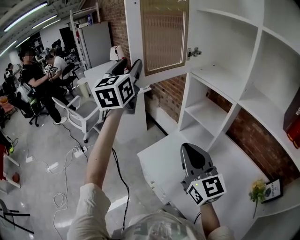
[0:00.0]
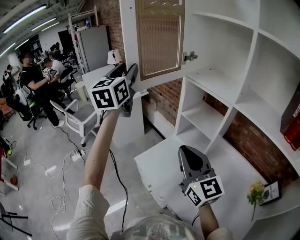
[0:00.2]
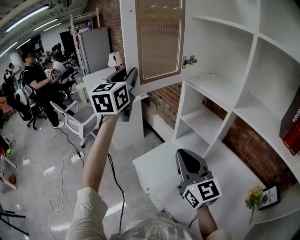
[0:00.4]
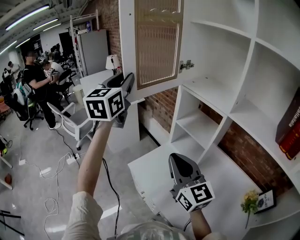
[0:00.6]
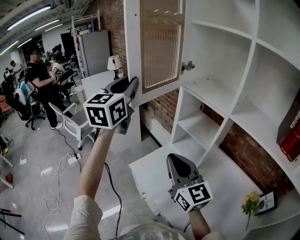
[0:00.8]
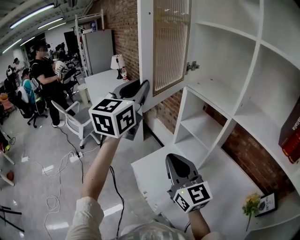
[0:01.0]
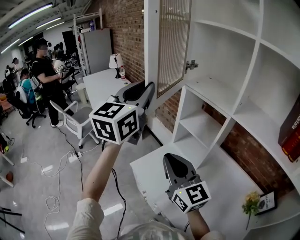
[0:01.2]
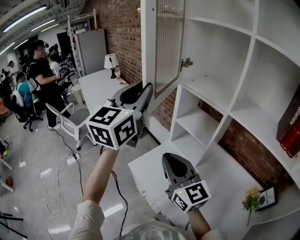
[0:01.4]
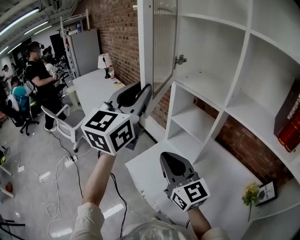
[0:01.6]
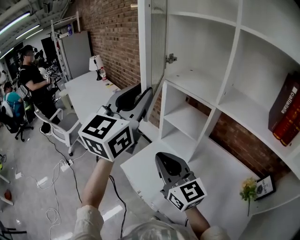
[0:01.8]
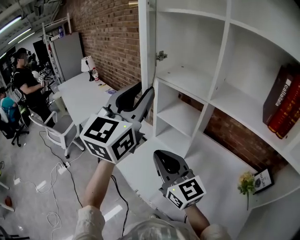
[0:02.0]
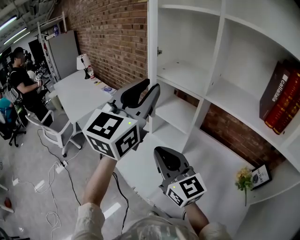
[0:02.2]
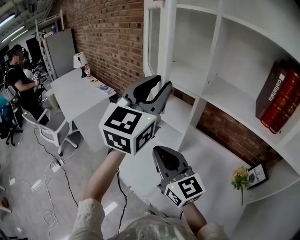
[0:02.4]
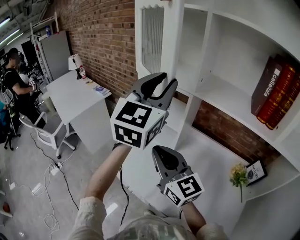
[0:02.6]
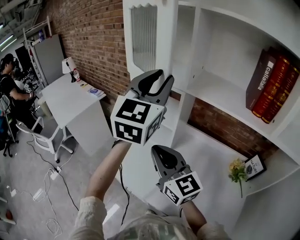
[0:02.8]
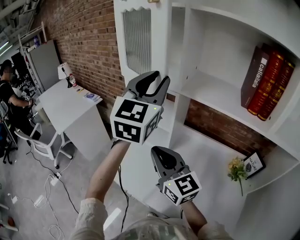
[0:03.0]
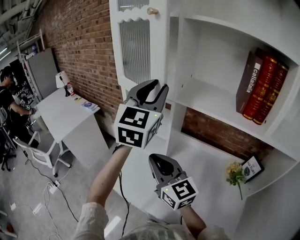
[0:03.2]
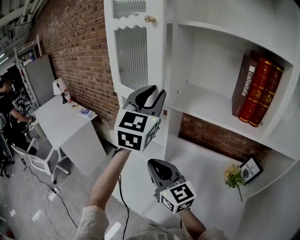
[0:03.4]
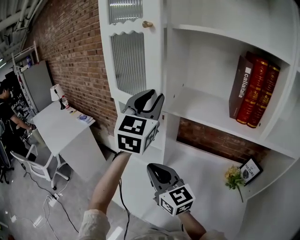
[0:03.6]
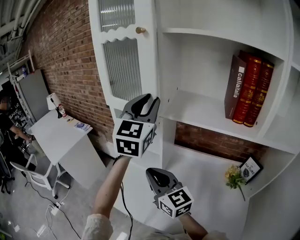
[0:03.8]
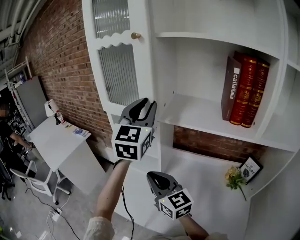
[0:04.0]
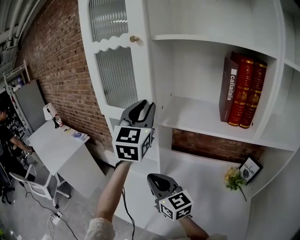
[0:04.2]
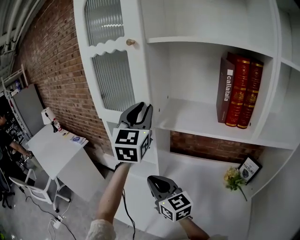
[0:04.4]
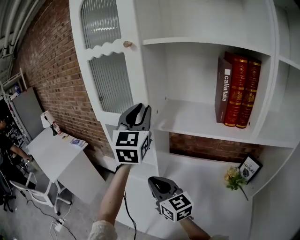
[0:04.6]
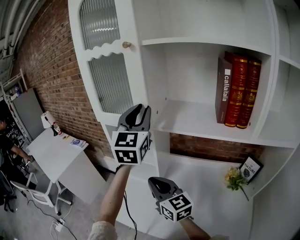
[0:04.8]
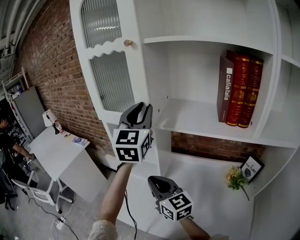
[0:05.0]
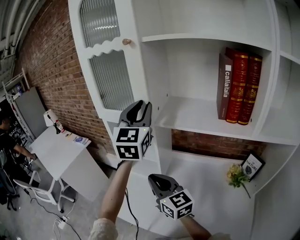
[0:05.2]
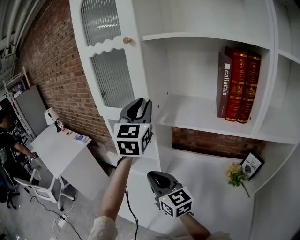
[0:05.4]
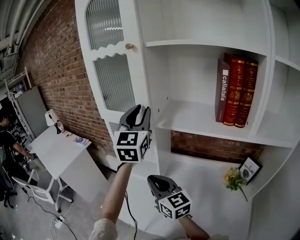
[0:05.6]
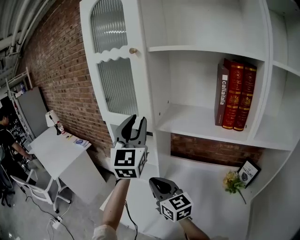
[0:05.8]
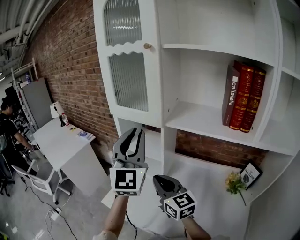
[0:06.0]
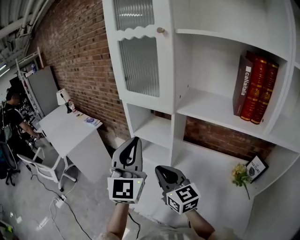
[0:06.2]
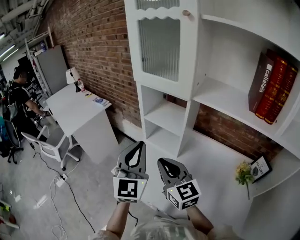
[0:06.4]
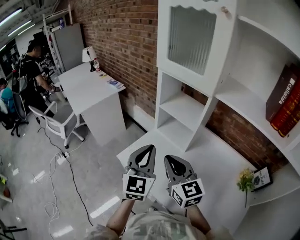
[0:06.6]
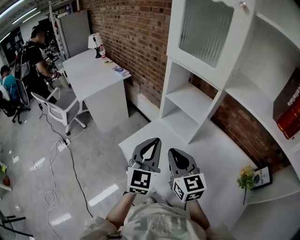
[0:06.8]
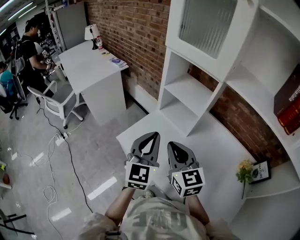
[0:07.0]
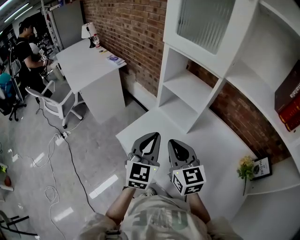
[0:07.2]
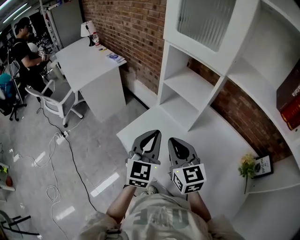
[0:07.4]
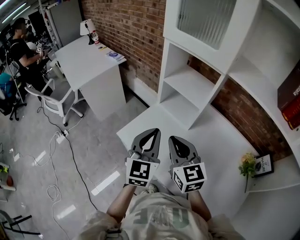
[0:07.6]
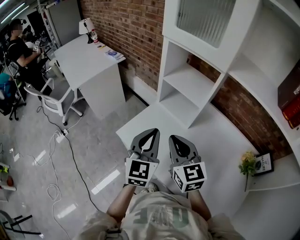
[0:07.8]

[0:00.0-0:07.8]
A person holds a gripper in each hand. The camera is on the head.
0:00.0 to 0:01.6: The left gripper is displaced to the right and backward by approximately 15 cm, and closes up.
0:01.6 to 0:03.2: The left gripper moves to the right, about 20 cm. The right gripper travels to the right by some 10 cm.
0:03.2 to 0:04.6: The right gripper shifts by roughly 5 cm; the left gripper heads forward, covering roughly 5 cm.
0:04.6 to 0:06.2: The right gripper ends up approximately 5 cm from where it was. The left gripper moves backward, to the left and downward, approximately 20 cm, and closes.
0:06.2 to 0:07.8: The left gripper moves downward, roughly 20 cm, and swivels roughly 30 degrees; the right gripper is displaced downward by roughly 10 cm.

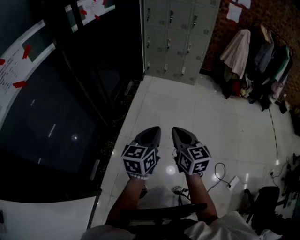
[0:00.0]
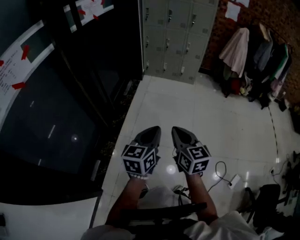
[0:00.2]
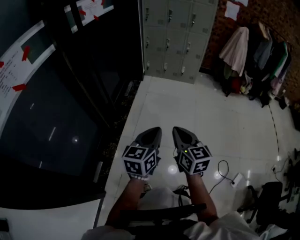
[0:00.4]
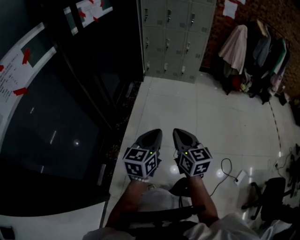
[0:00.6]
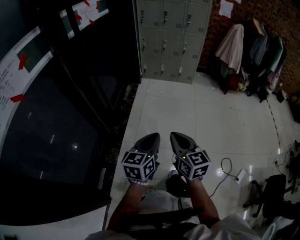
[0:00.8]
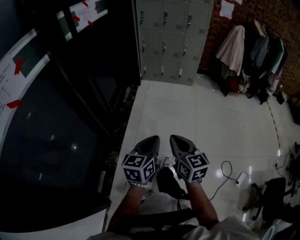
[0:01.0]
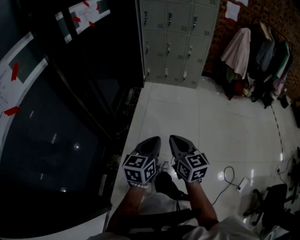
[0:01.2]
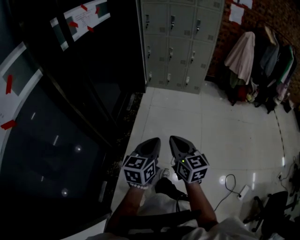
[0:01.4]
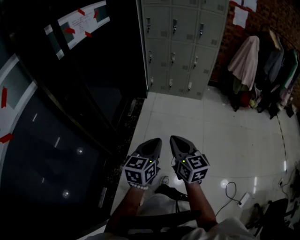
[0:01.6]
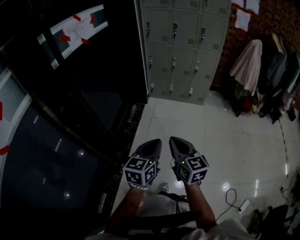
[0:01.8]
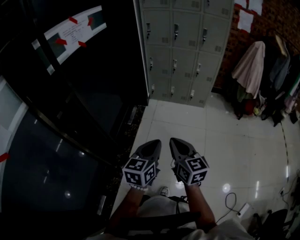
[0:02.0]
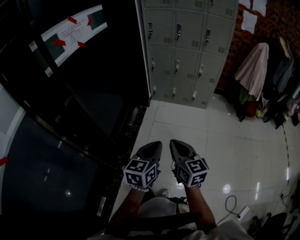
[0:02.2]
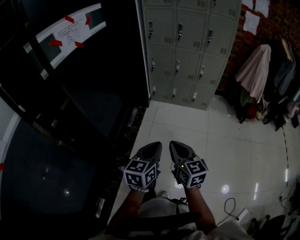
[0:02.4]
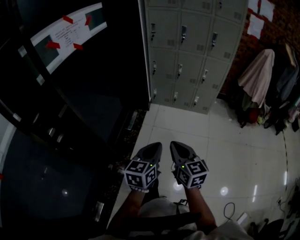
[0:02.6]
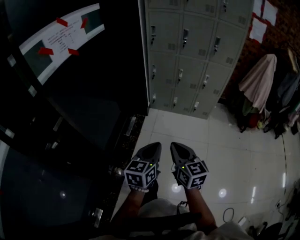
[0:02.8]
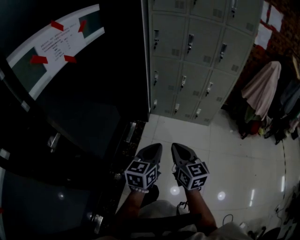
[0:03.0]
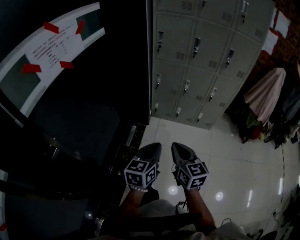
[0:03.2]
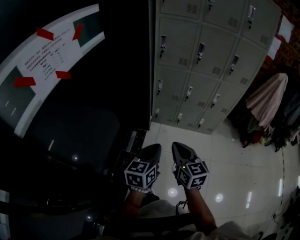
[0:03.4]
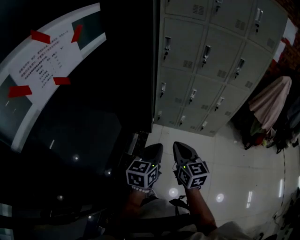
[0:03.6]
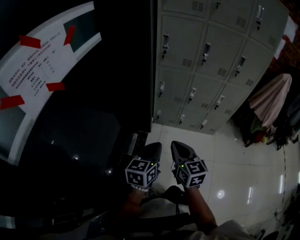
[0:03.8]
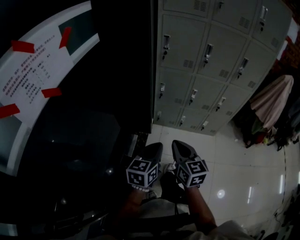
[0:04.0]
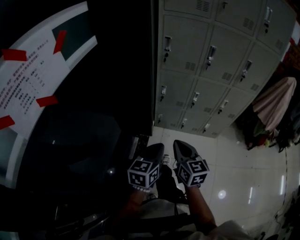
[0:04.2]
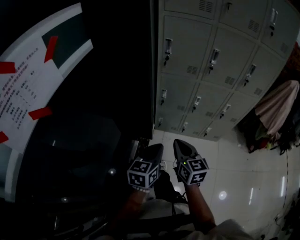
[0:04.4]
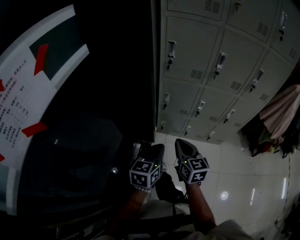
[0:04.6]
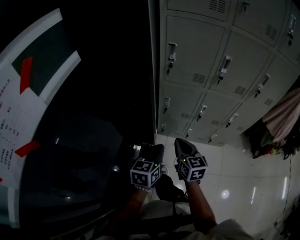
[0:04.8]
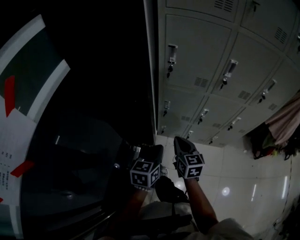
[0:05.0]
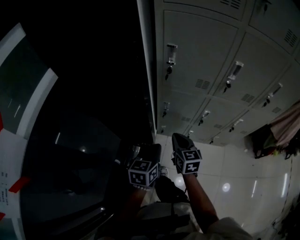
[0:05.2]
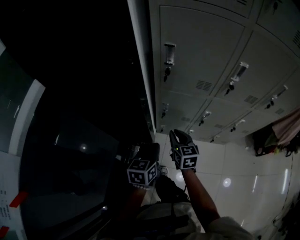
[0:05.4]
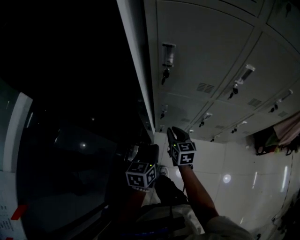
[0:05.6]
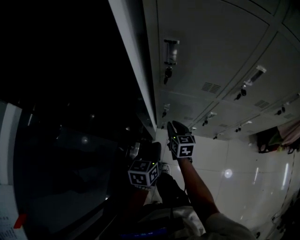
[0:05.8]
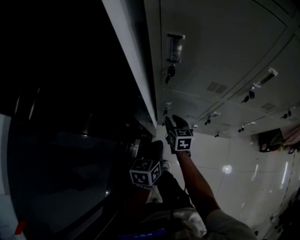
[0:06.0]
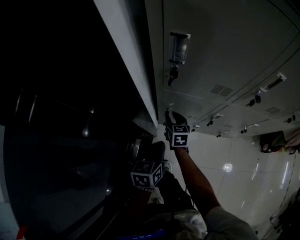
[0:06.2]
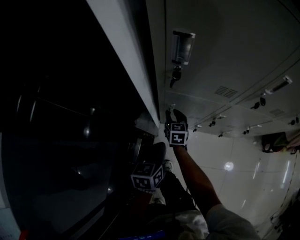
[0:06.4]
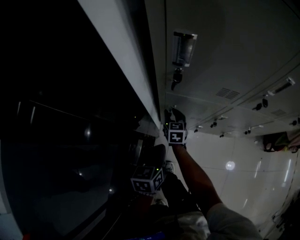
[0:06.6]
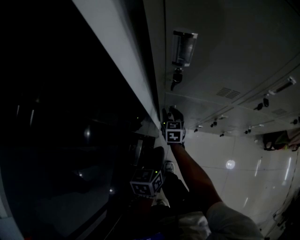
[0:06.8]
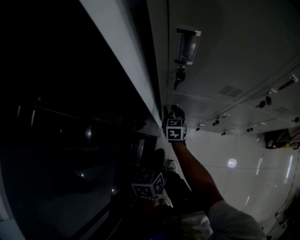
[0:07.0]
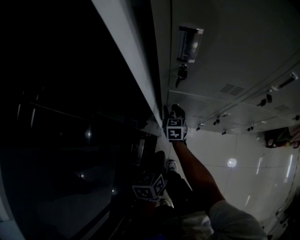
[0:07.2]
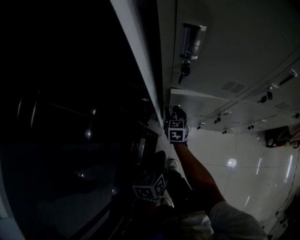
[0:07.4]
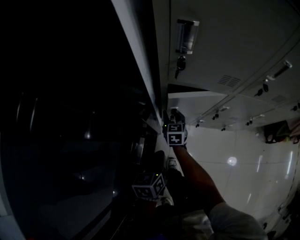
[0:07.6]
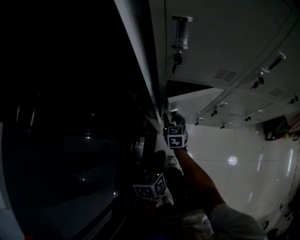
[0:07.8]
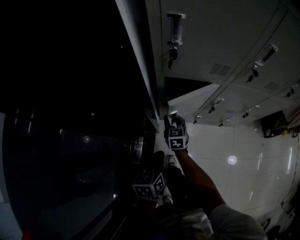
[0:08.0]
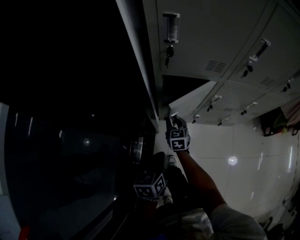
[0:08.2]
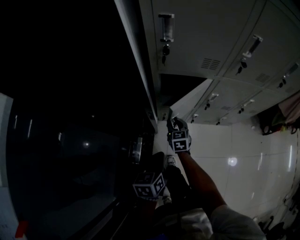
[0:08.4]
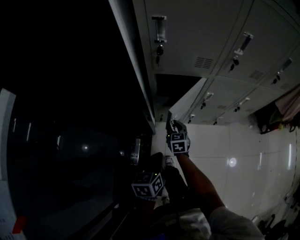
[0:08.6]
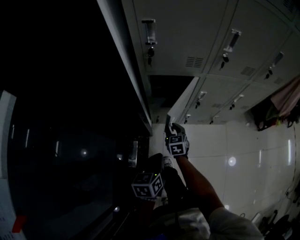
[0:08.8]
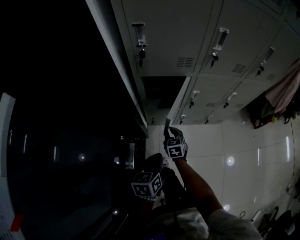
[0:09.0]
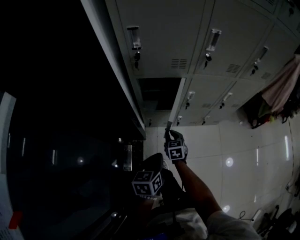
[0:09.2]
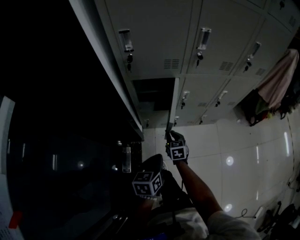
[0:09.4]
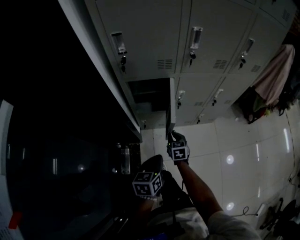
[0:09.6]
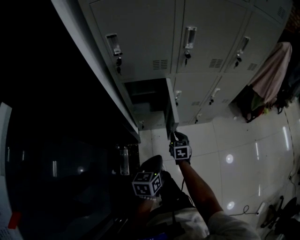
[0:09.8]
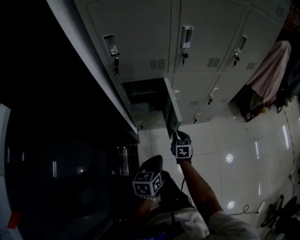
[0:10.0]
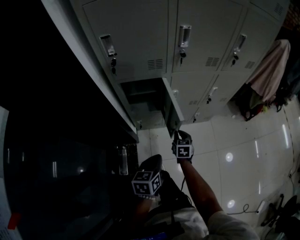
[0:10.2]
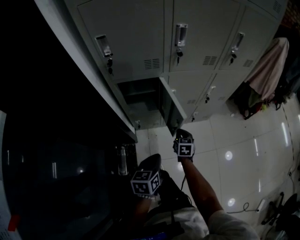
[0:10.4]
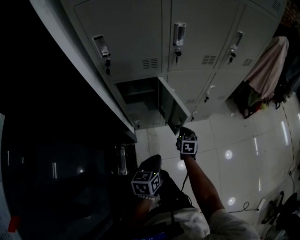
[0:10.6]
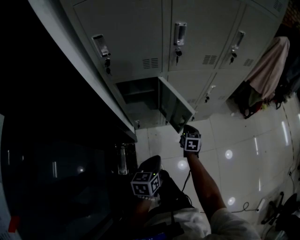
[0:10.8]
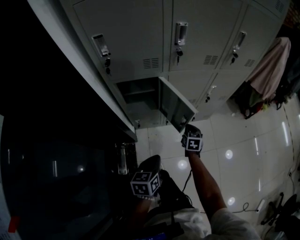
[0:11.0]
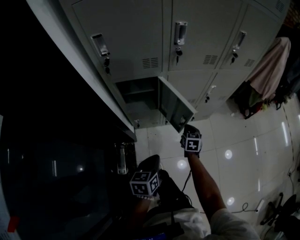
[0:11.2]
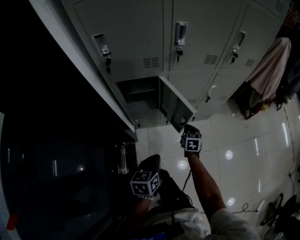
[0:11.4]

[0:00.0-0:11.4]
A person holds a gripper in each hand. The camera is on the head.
0:00.0 to 0:01.4: The grippers both shift forward and to the left by some 15 cm.
0:01.4 to 0:02.8: The grippers both shift forward by about 35 cm.
0:02.8 to 0:04.2: Both grippers travel together forward, roughly 35 cm.
0:04.2 to 0:05.6: The right gripper heads forward and downward, covering some 40 cm, and opens up. The left gripper is displaced forward by approximately 35 cm.
0:05.6 to 0:07.2: The left gripper moves downward, roughly 5 cm. Meanwhile the right gripper moves forward, downward and to the left, about 20 cm.
0:07.2 to 0:08.6: The right gripper travels backward and to the right by roughly 20 cm. The left gripper is displaced backward by some 10 cm.
0:08.6 to 0:10.0: The right gripper goes about 20 cm to the right. Meanwhile the left gripper shifts roughly 10 cm to the right.
0:10.0 to 0:11.4: The right gripper travels to the right by approximately 10 cm.

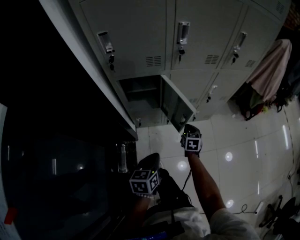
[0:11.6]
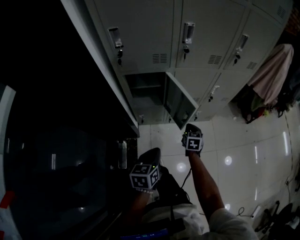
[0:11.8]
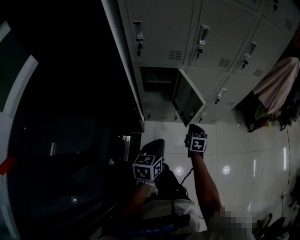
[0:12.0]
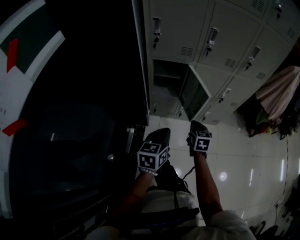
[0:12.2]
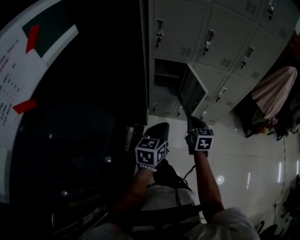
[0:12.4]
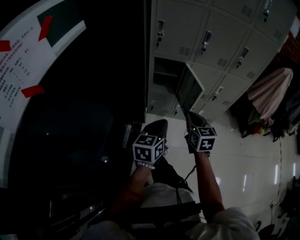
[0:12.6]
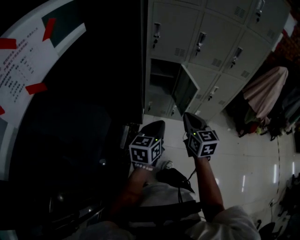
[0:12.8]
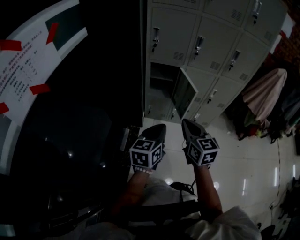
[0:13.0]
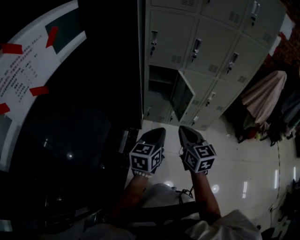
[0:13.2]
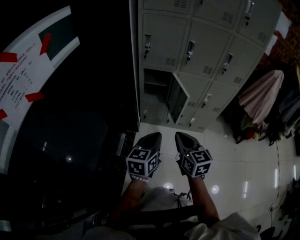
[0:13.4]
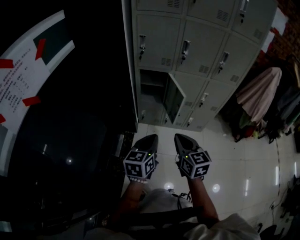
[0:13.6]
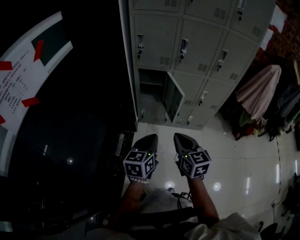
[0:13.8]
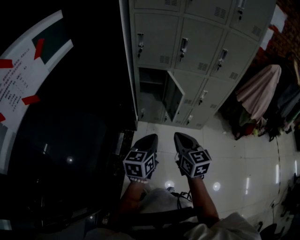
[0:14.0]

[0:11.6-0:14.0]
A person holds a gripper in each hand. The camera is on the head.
0:11.6 to 0:12.8: The right gripper goes roughly 40 cm upward and backward, and rotates some 40 degrees. The left gripper shifts approximately 25 cm upward and backward, and swivels some 20 degrees.
0:12.8 to 0:14.0: The left gripper goes about 5 cm to the right; the right gripper heads backward and to the right, covering some 10 cm.

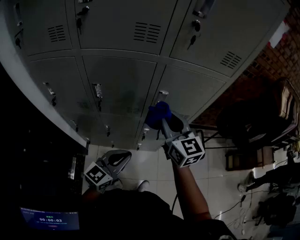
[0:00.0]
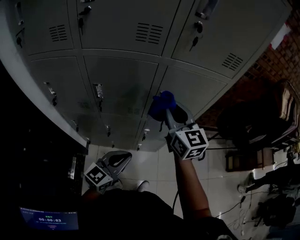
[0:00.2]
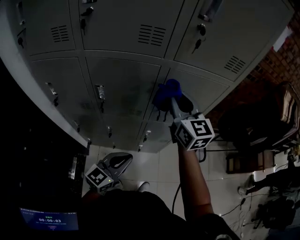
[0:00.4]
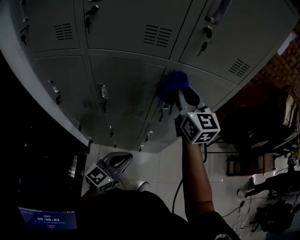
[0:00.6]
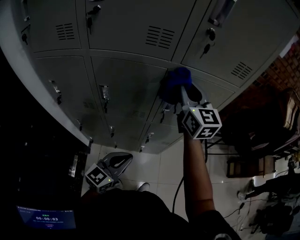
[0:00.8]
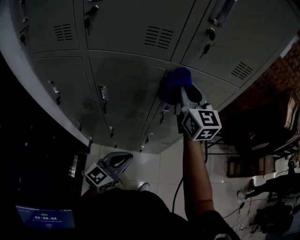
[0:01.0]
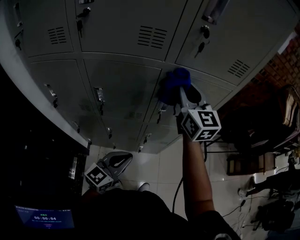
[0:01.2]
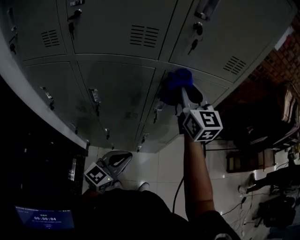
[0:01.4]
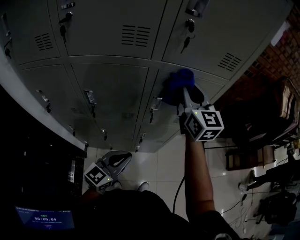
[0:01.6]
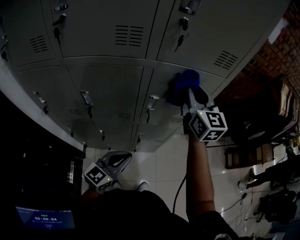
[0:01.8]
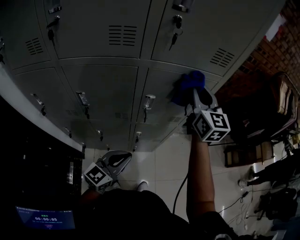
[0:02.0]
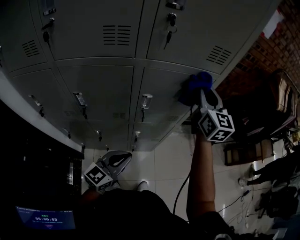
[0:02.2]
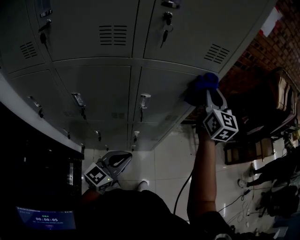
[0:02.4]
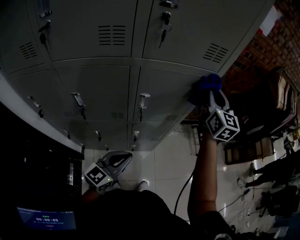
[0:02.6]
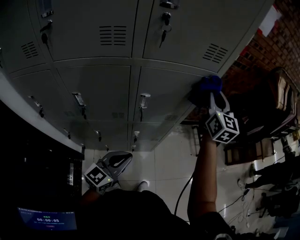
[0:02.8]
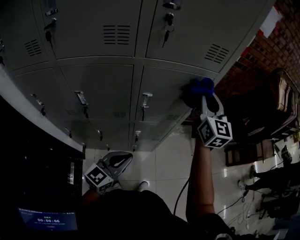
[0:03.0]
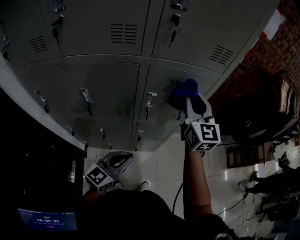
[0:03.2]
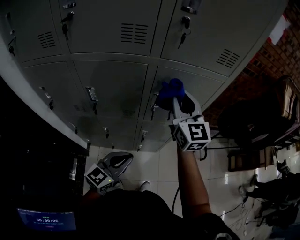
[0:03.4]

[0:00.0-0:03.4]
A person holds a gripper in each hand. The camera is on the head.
0:00.0 to 0:01.6: The right gripper goes about 15 cm forward, upward and to the right.
0:01.6 to 0:03.4: The right gripper travels to the right and back again, approximately 15 cm each way.
